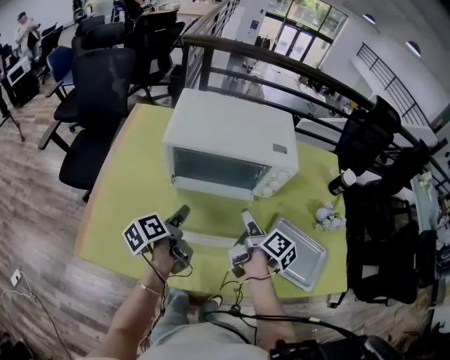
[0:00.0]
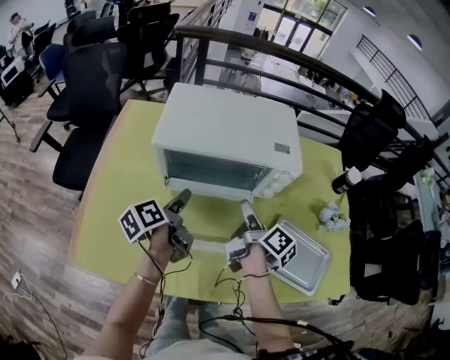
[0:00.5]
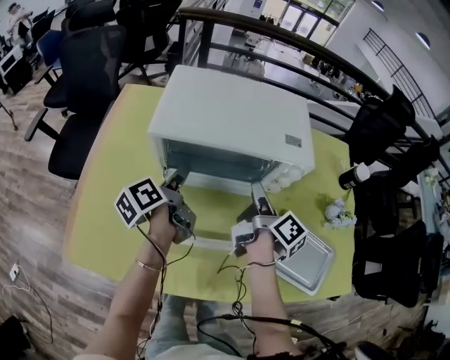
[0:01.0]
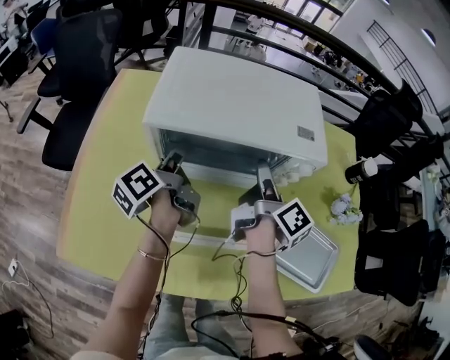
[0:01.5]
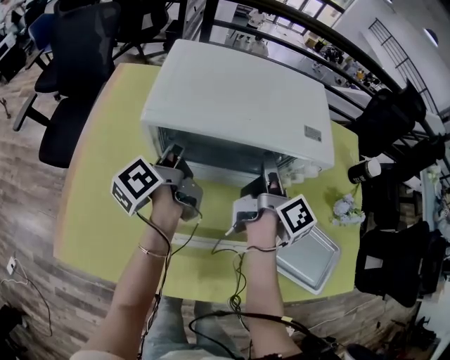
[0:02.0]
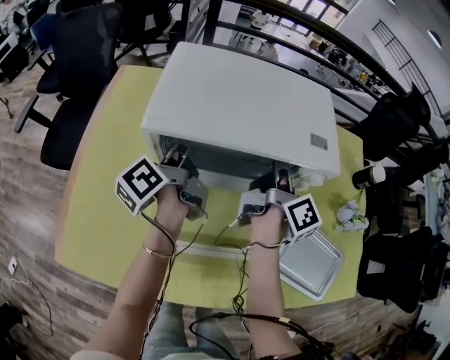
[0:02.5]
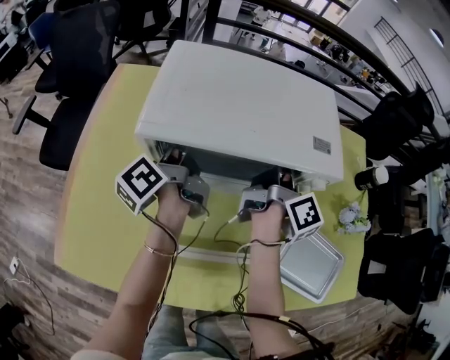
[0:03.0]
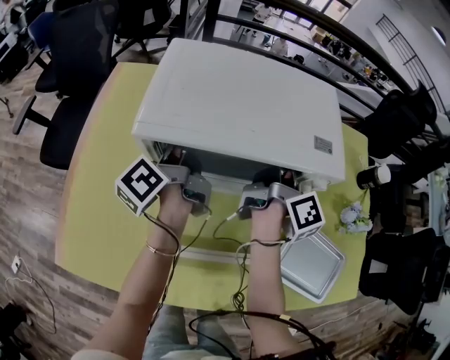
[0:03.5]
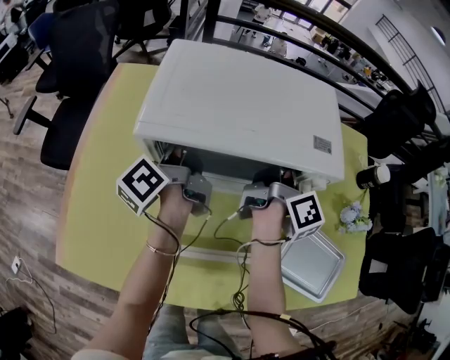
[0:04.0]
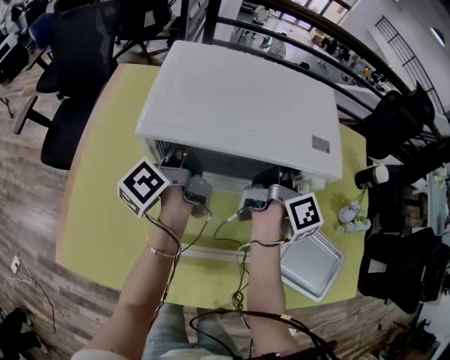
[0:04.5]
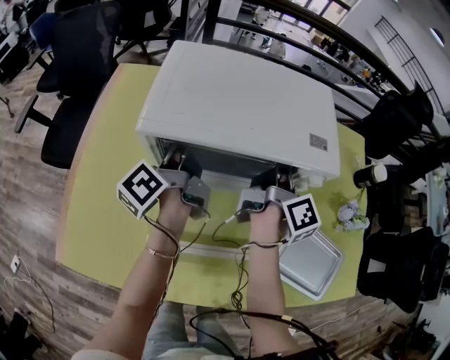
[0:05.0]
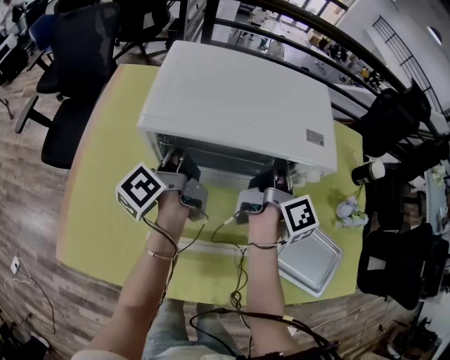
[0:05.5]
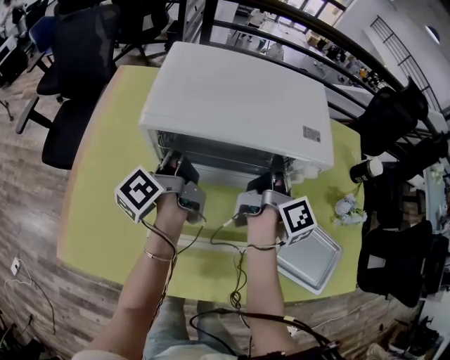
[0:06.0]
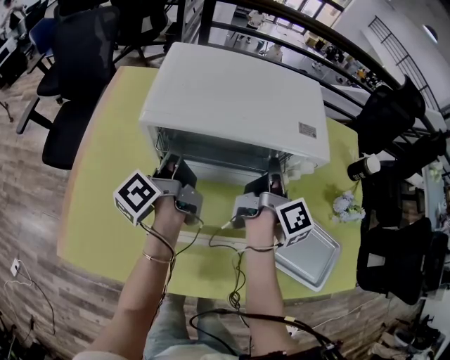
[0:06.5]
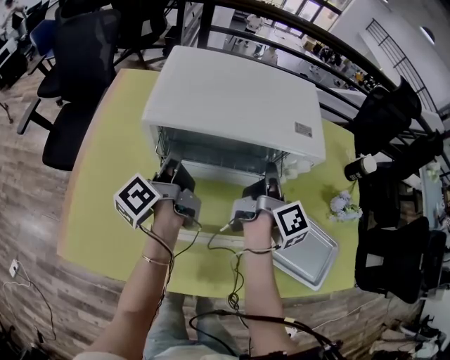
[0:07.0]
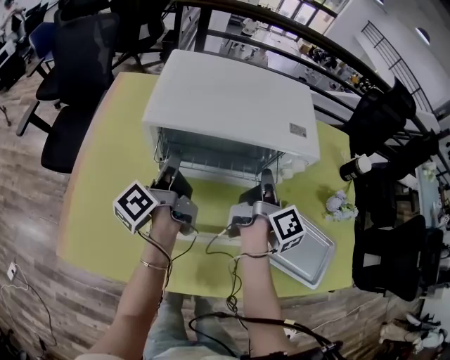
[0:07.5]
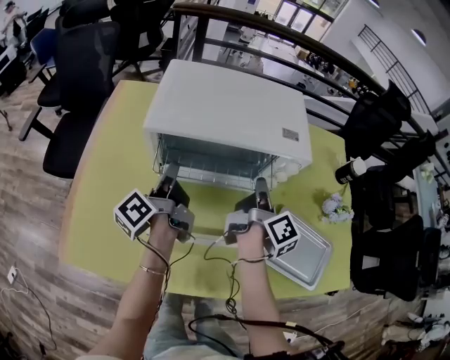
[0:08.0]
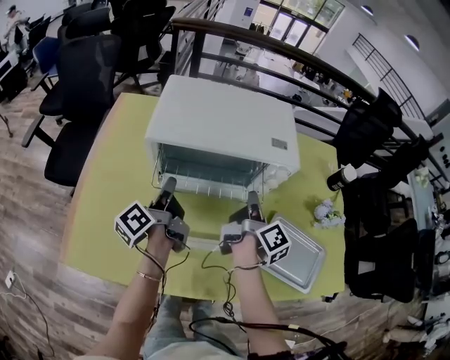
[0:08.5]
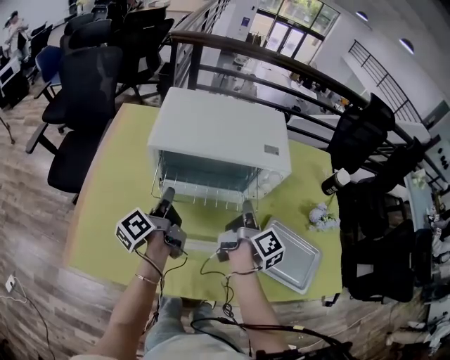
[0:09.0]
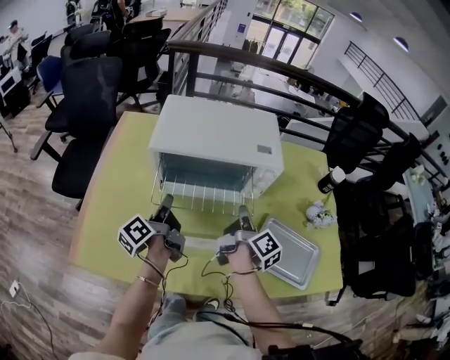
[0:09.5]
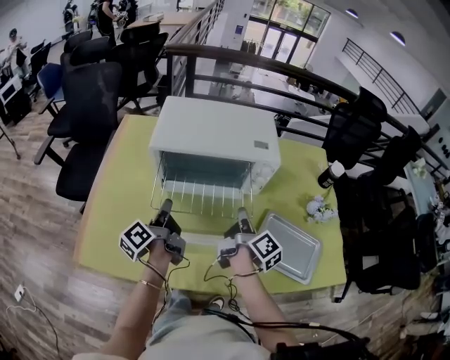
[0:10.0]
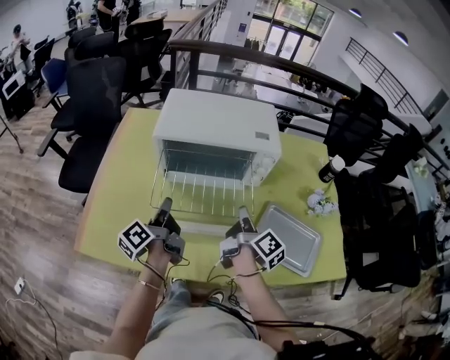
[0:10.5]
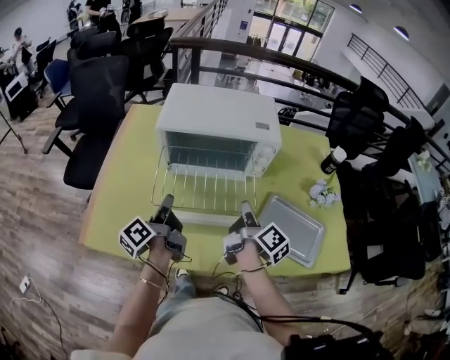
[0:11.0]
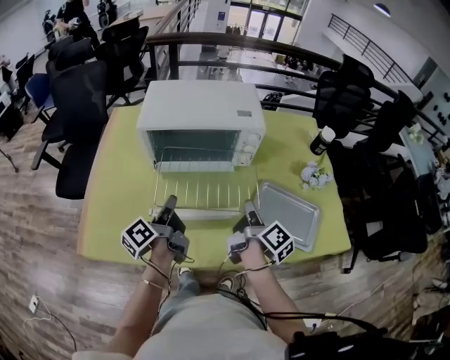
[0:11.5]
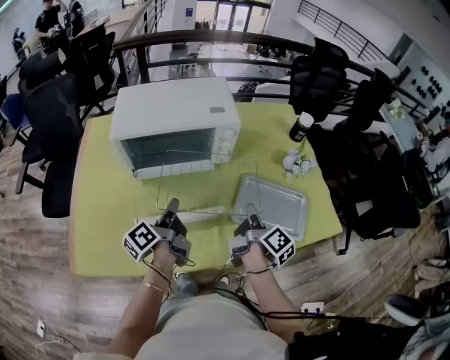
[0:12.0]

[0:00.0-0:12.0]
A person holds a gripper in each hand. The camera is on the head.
0:00.0 to 0:02.0: The two grippers go roughly 15 cm forward. The left gripper rotates about 30 degrees.
0:02.0 to 0:04.0: The left gripper closes its fingers. The right gripper travels forward by approximately 5 cm, and closes.
0:04.0 to 0:06.0: The grippers stay close to where they were, moving slightly.
0:06.0 to 0:08.0: The grippers both shift backward by some 5 cm.
0:08.0 to 0:10.0: The grippers both shift backward by approximately 10 cm.
0:10.0 to 0:12.0: The left gripper moves to the right, roughly 10 cm, while the right gripper shifts approximately 15 cm to the right and backward.

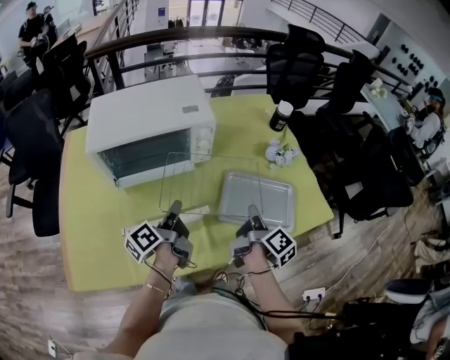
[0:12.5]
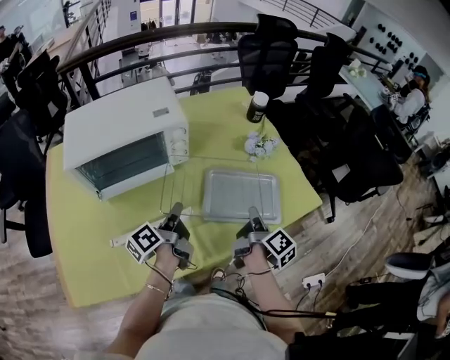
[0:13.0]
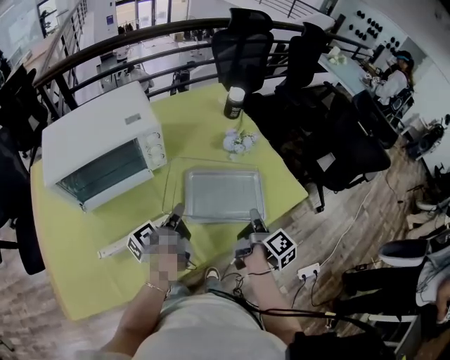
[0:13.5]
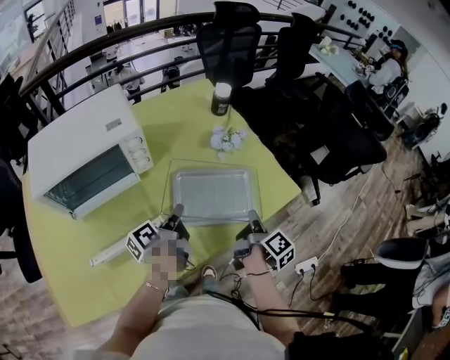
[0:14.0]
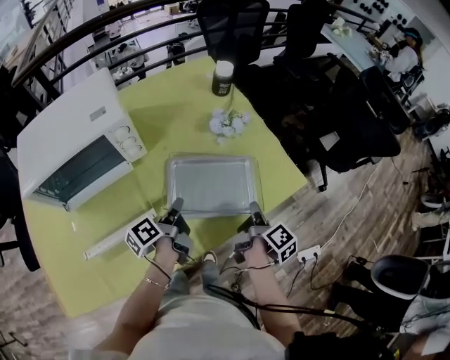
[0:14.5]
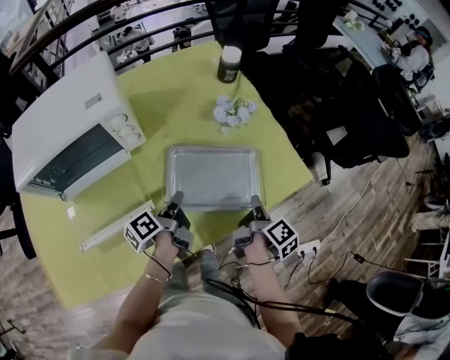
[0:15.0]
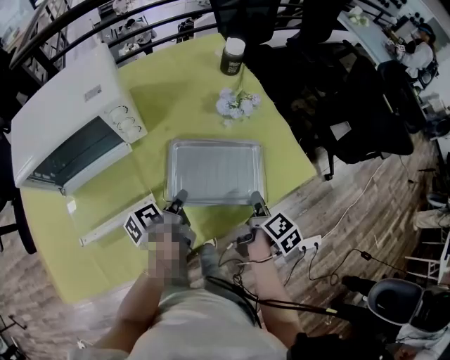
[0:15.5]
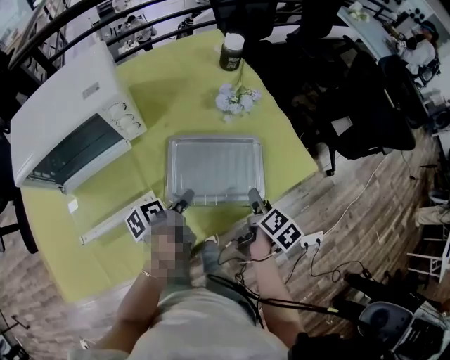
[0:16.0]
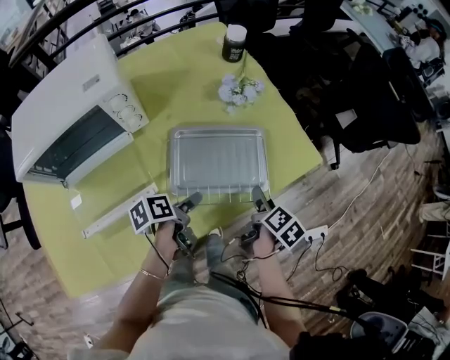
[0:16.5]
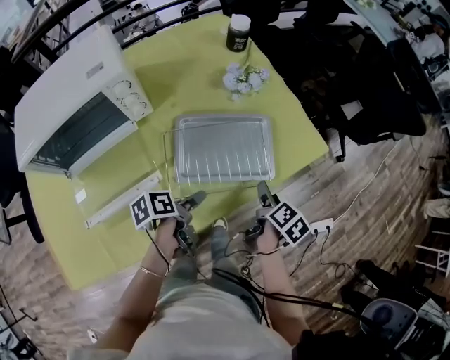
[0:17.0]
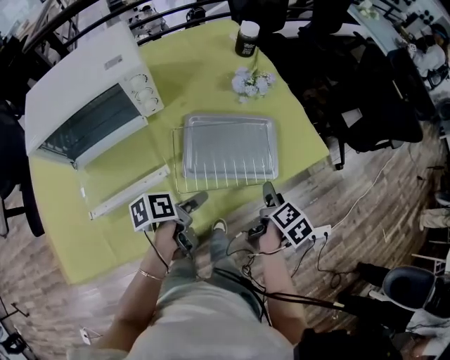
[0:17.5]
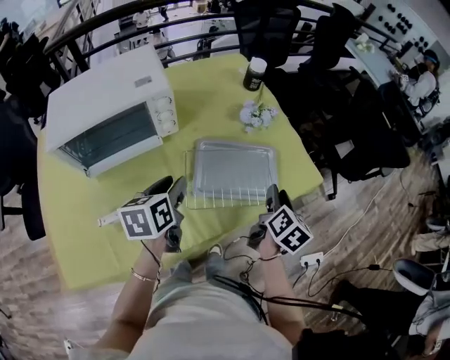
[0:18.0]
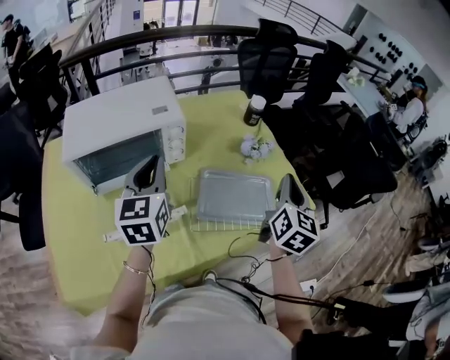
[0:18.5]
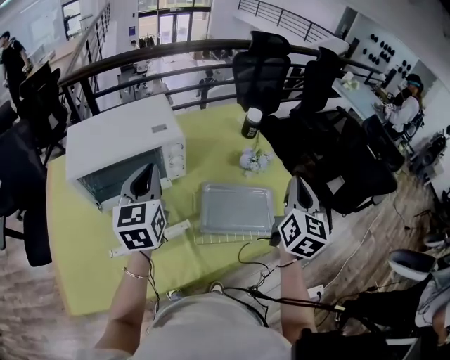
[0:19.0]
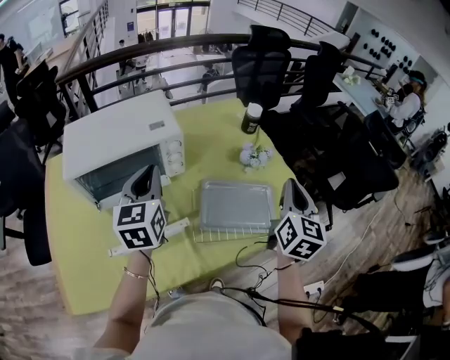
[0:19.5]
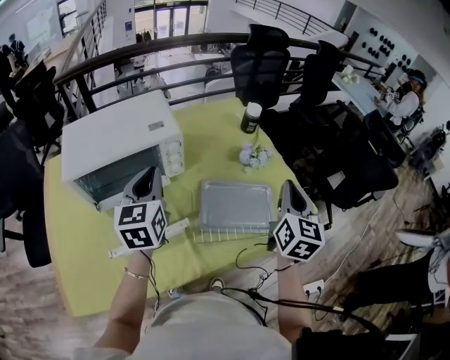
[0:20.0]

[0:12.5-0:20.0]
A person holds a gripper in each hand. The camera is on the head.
0:12.5 to 0:14.5: The left gripper heads to the right, forward and downward, covering about 20 cm, and changes its angle by roughly 20 degrees. The right gripper moves to the right, roughly 20 cm.
0:14.5 to 0:16.5: The left gripper is displaced downward and backward by about 10 cm, swivels about 30 degrees, and opens up, while the right gripper moves downward, about 5 cm, rotates about 30 degrees, and opens its fingers.
0:16.5 to 0:18.0: The right gripper moves upward, roughly 15 cm, changes its angle by about 30 degrees, and closes. Meanwhile the left gripper moves upward and to the left, about 20 cm, turns by some 50 degrees, and closes.
0:18.0 to 0:20.0: The left gripper travels upward, to the left and forward by some 15 cm, rotates about 30 degrees, and closes up; the right gripper heads upward, covering some 20 cm, rotates approximately 30 degrees, and closes up.

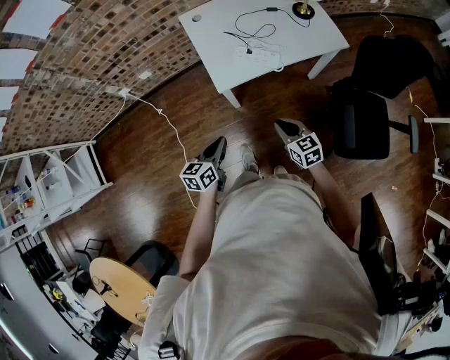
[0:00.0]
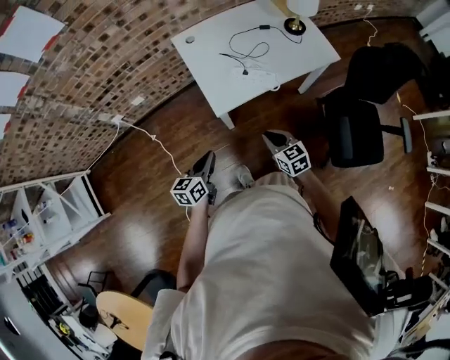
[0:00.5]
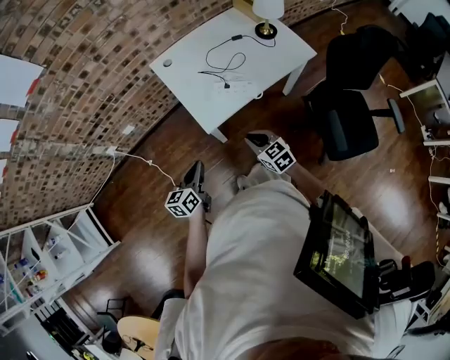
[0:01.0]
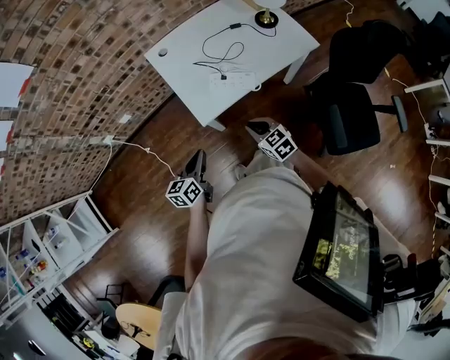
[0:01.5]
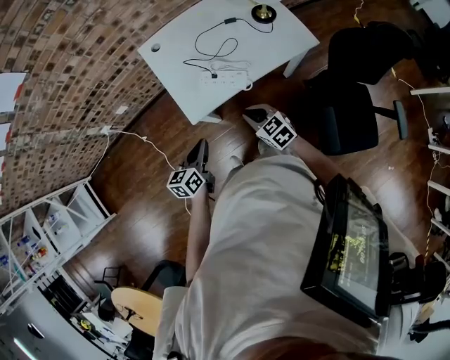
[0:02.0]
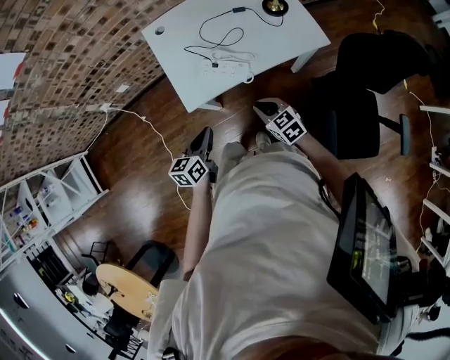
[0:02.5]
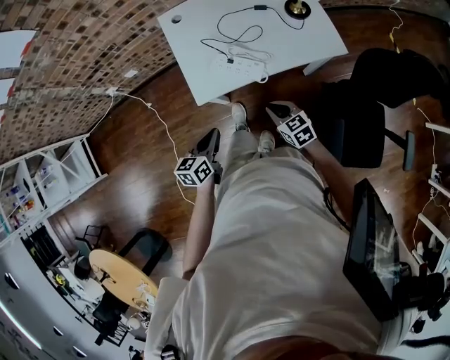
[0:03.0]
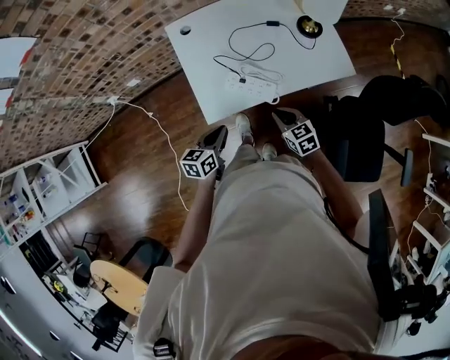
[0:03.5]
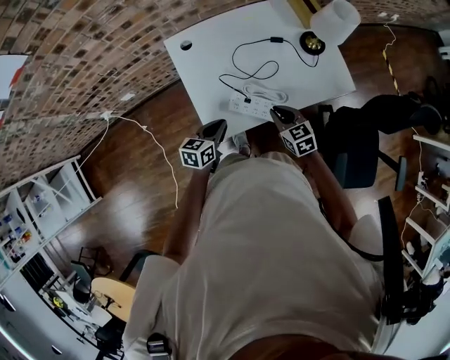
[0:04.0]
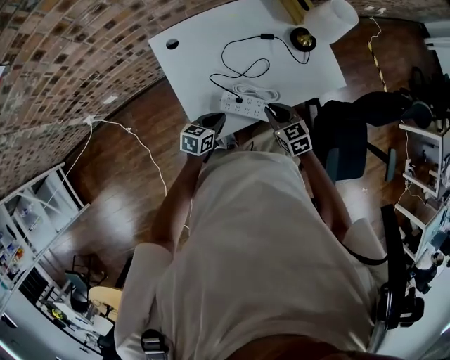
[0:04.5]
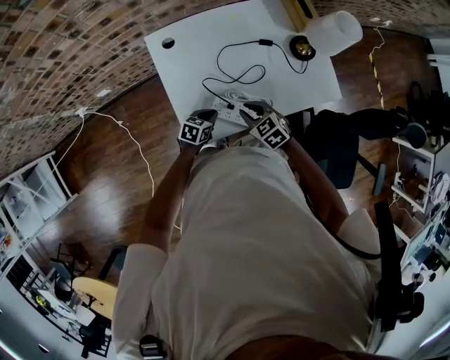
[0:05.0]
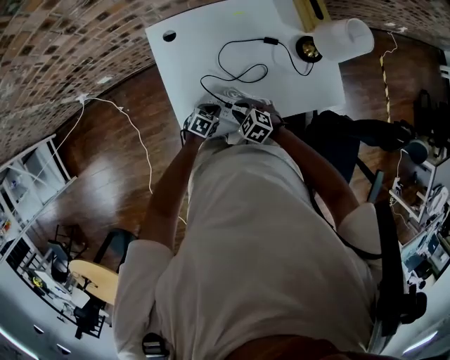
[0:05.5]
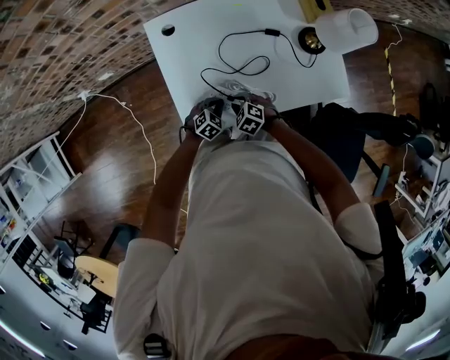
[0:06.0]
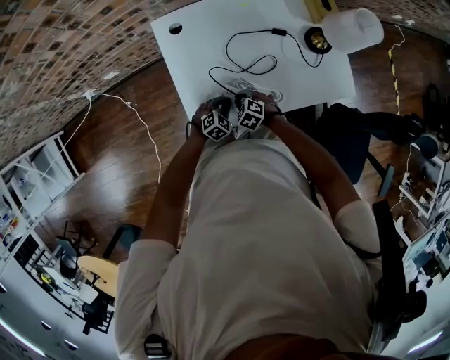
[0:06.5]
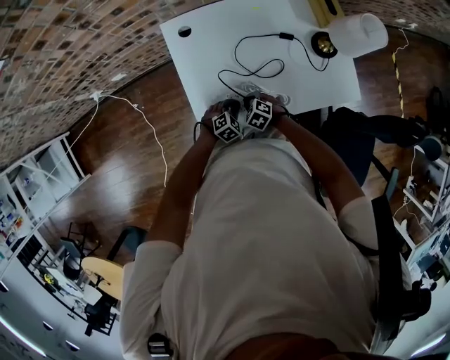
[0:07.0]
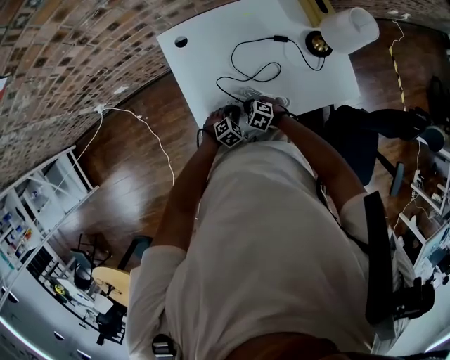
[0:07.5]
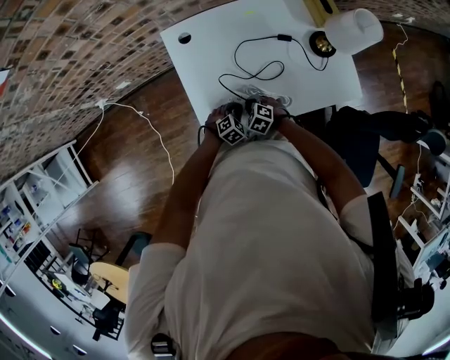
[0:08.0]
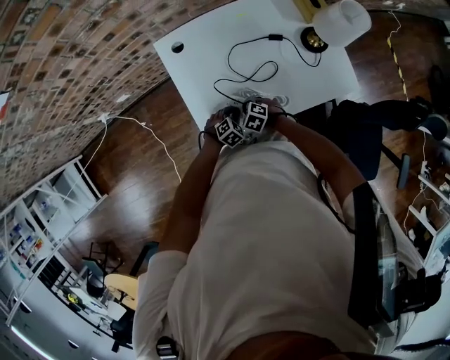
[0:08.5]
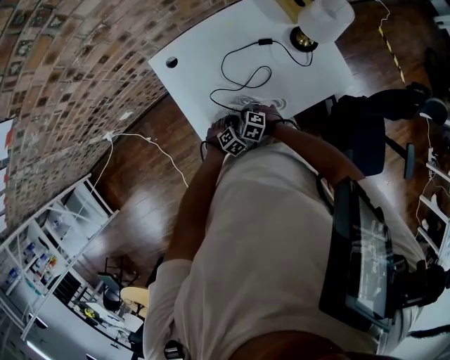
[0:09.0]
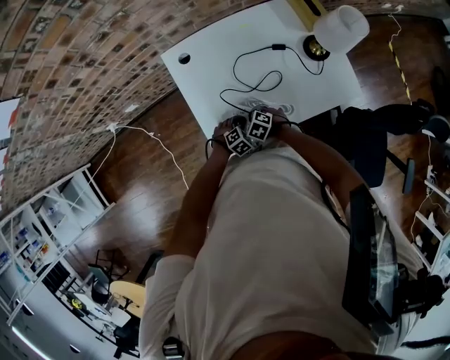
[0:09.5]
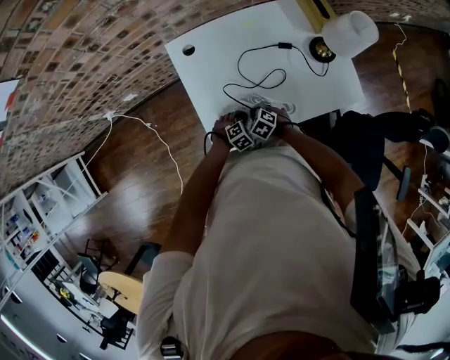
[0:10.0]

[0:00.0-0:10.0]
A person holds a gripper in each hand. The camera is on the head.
0:00.0 to 0:02.0: The left gripper shifts some 15 cm forward and to the right. The right gripper travels forward by approximately 15 cm.
0:02.0 to 0:04.0: The grippers both shift forward by some 20 cm.
0:04.0 to 0:06.0: Both grippers move downward, roughly 20 cm. The right gripper changes its angle by approximately 50 degrees, while the left gripper swivels about 50 degrees.
0:06.0 to 0:10.0: There are only small adjustments of the grippers.
